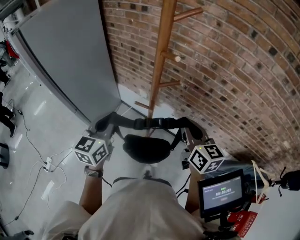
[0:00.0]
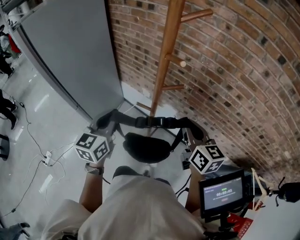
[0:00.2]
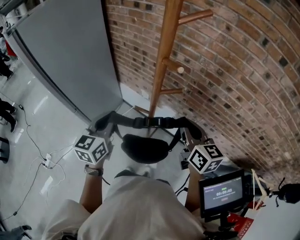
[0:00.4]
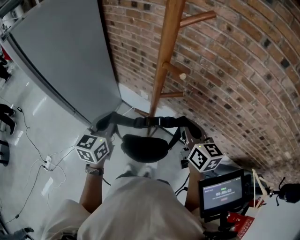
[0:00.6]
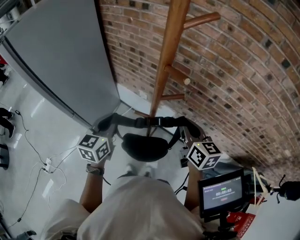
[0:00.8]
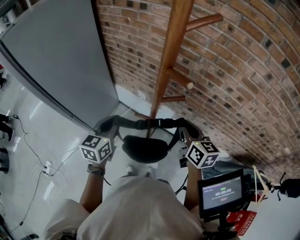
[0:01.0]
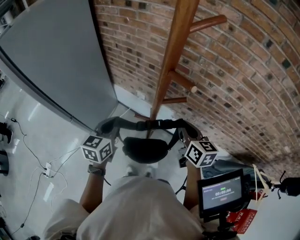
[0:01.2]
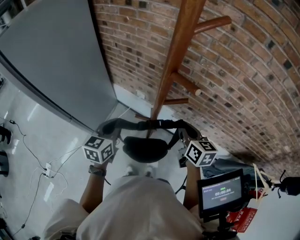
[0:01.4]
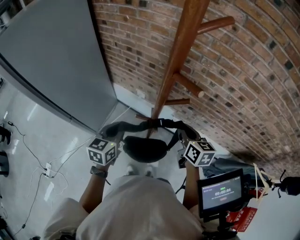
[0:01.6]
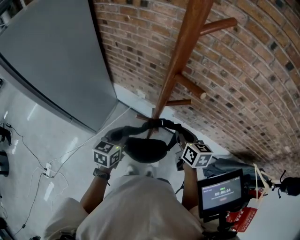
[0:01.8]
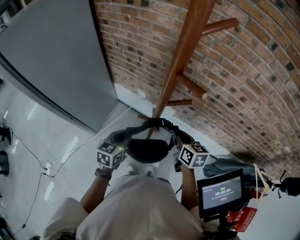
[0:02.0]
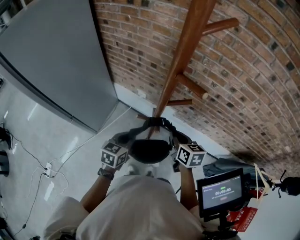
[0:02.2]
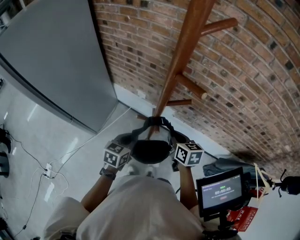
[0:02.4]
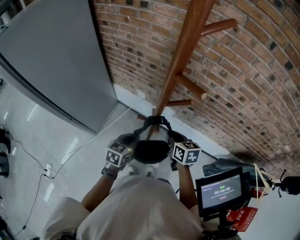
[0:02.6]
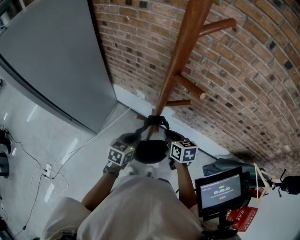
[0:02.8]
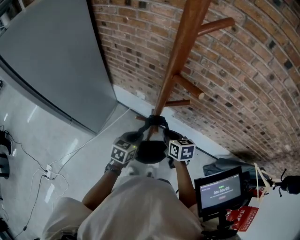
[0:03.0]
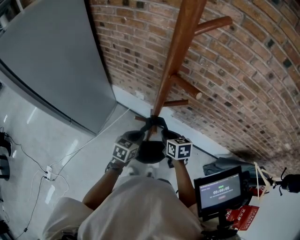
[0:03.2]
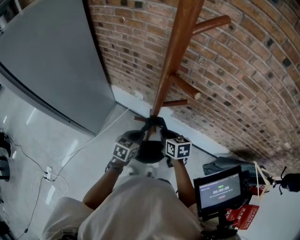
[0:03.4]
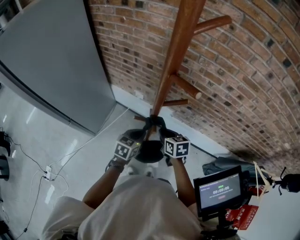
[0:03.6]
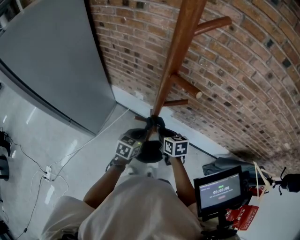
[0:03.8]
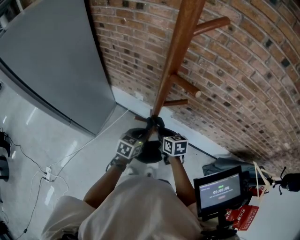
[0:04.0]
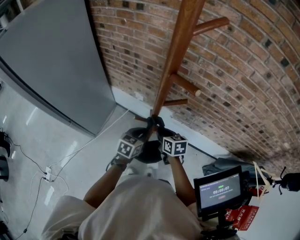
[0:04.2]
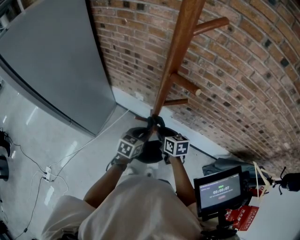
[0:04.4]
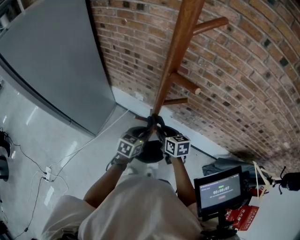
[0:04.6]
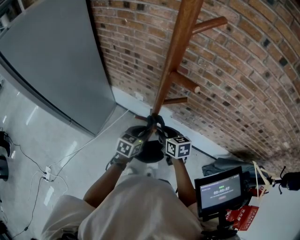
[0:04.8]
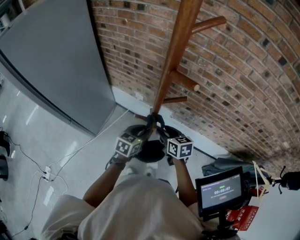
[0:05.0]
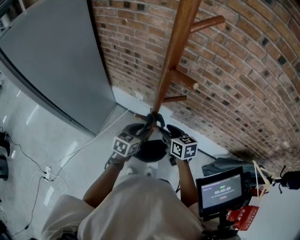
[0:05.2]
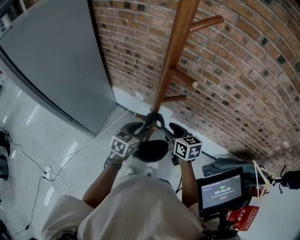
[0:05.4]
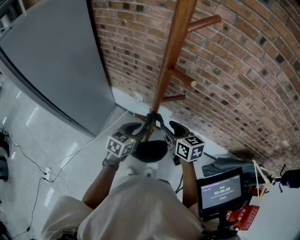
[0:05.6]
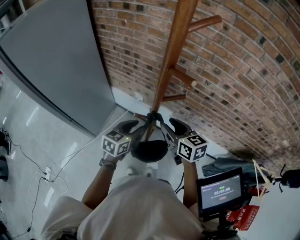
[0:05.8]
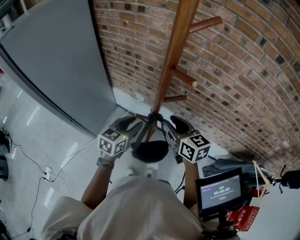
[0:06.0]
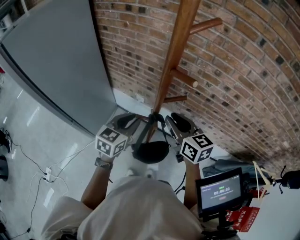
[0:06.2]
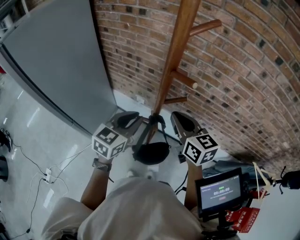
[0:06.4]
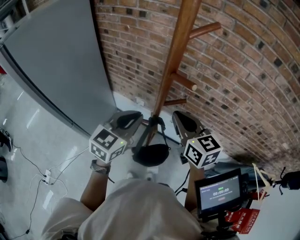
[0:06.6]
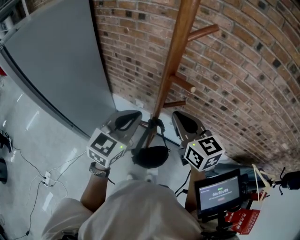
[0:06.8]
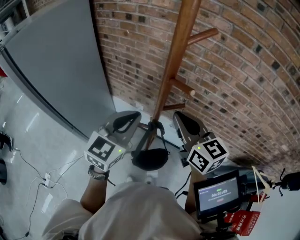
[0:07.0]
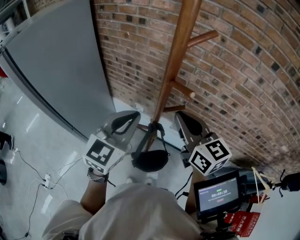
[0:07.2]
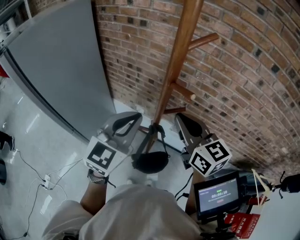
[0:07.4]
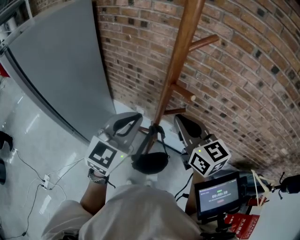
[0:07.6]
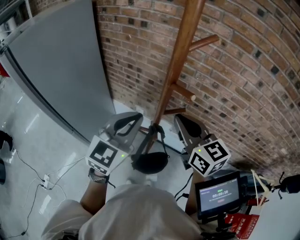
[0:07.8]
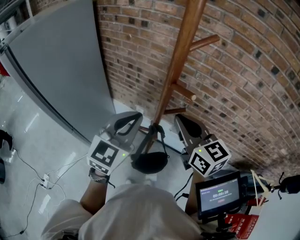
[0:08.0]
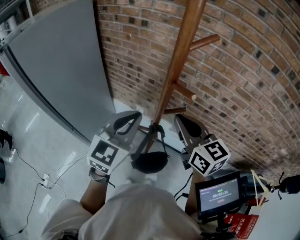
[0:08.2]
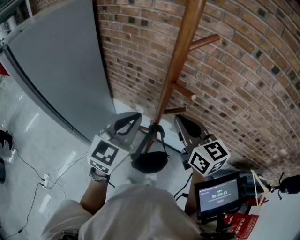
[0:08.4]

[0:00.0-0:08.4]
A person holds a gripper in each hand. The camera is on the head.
0.0 to 1.4 s: The grippers both shift downward and forward by about 10 cm.
1.4 to 2.8 s: The right gripper shifts roughly 10 cm downward and to the left; the left gripper shifts some 15 cm downward and to the right.
2.8 to 4.2 s: The left gripper ends up about 5 cm from where it was.
4.2 to 5.6 s: The right gripper travels upward by about 10 cm, and opens up. Meanwhile the left gripper moves upward, roughly 5 cm, and opens its fingers.
5.6 to 7.0 s: The two grippers go some 20 cm upward. The left gripper swivels some 30 degrees, and closes its fingers, while the right gripper rotates some 20 degrees, and closes its fingers.
7.0 to 8.4 s: The grippers stay close to where they were, moving slightly.

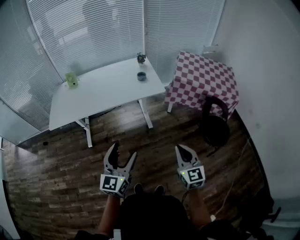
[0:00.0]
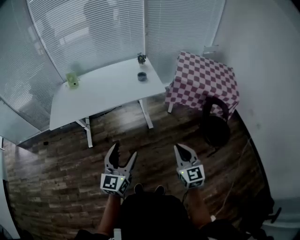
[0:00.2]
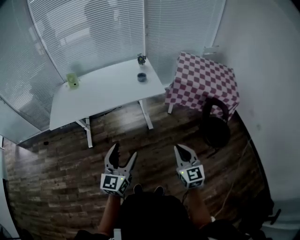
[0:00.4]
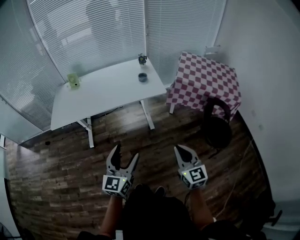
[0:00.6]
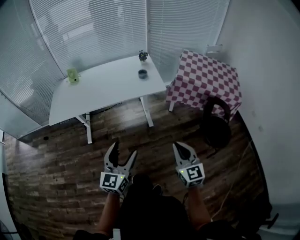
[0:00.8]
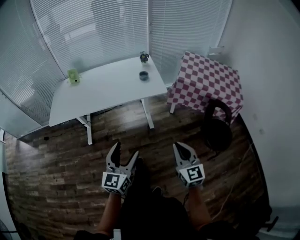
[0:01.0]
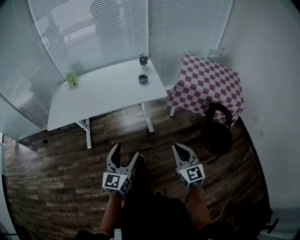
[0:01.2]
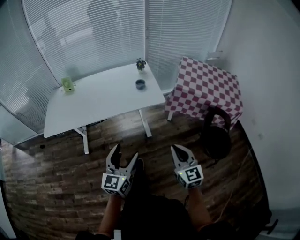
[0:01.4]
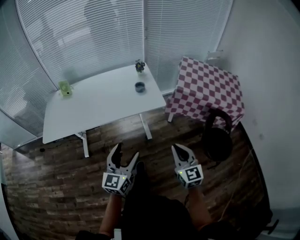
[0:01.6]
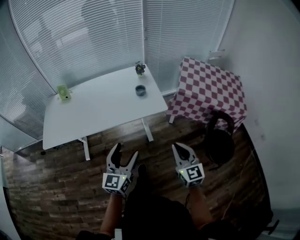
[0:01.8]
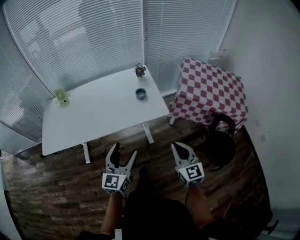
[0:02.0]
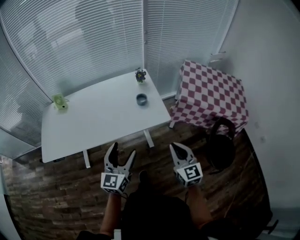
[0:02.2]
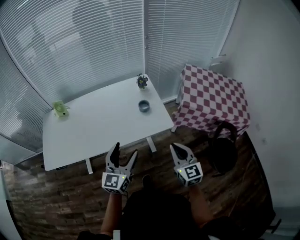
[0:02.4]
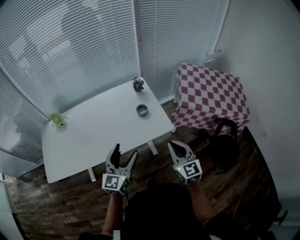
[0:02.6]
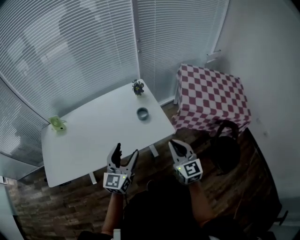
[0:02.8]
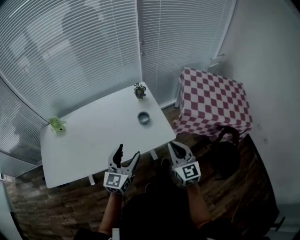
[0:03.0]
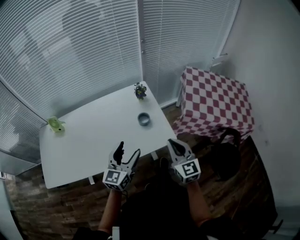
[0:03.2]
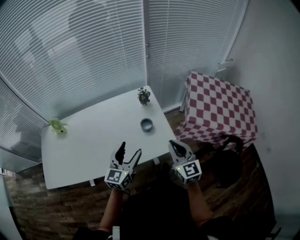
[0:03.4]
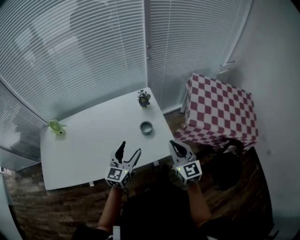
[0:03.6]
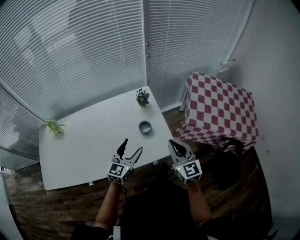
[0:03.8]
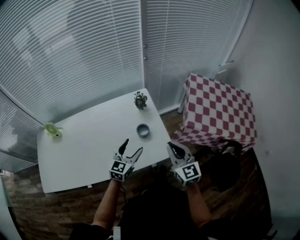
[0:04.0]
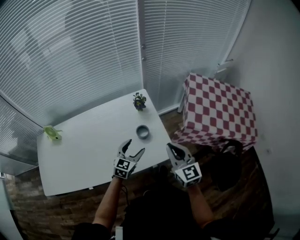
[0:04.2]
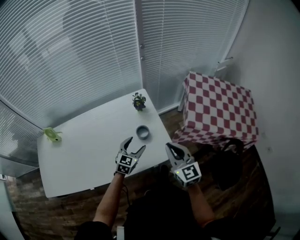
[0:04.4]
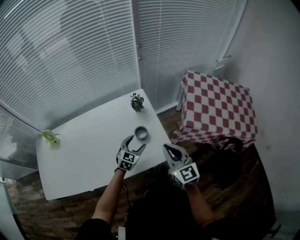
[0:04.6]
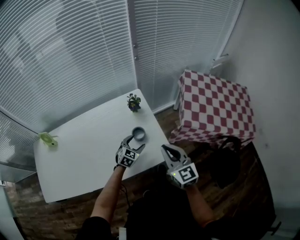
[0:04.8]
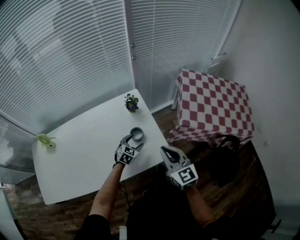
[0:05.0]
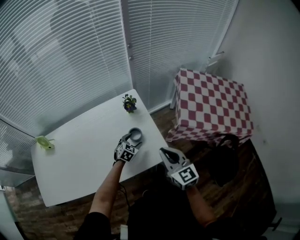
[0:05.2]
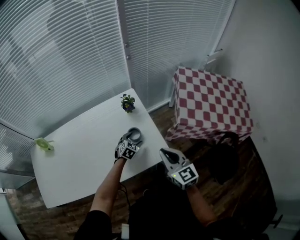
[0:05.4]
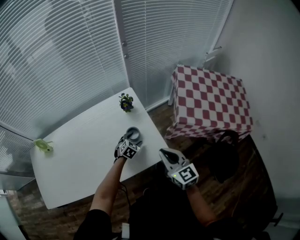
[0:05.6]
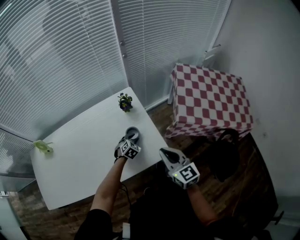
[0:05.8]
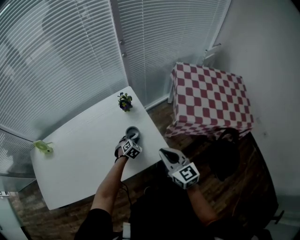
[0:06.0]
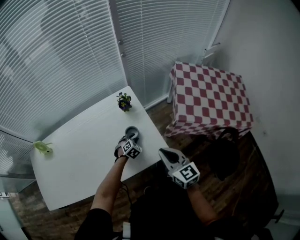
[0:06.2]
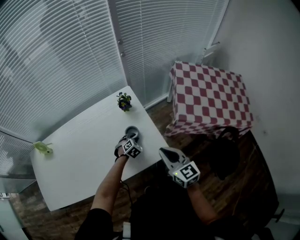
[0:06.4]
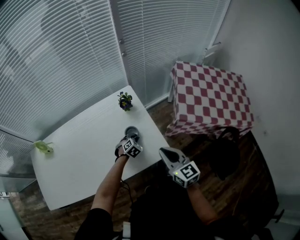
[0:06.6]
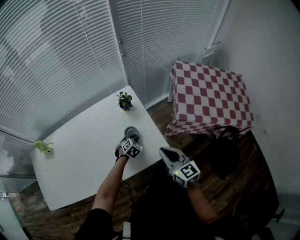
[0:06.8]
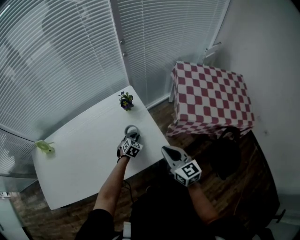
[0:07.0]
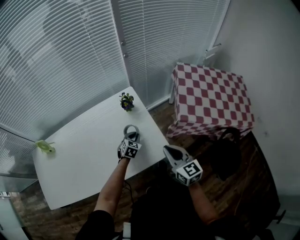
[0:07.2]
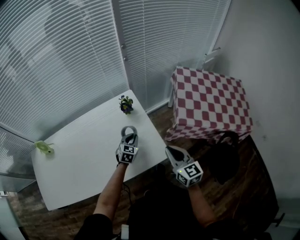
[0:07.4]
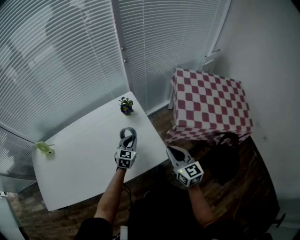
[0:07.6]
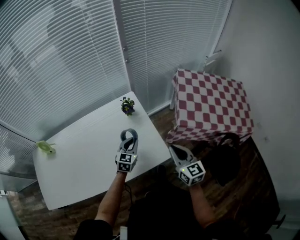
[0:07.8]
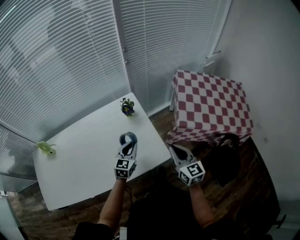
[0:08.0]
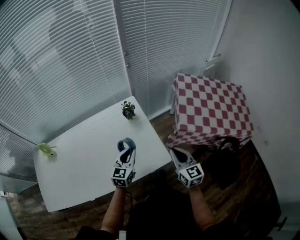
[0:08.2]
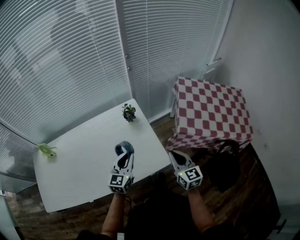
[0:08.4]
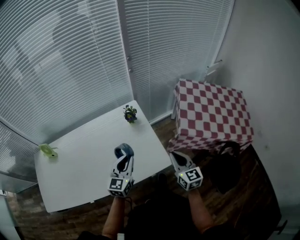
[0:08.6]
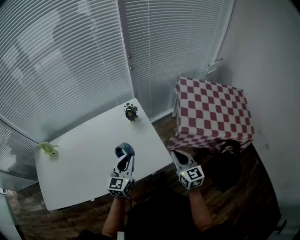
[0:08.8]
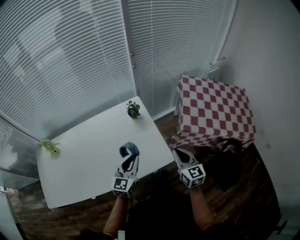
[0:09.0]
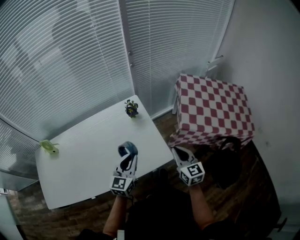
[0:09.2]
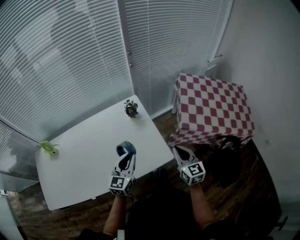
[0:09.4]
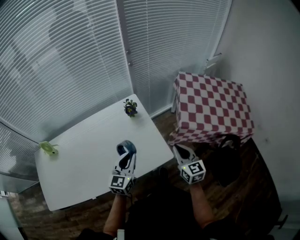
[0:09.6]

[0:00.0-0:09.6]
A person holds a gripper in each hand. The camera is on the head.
0.0 to 1.6 s: The grippers both shift forward by roughly 15 cm.
1.6 to 3.2 s: The two grippers go about 35 cm forward.
3.2 to 4.8 s: The left gripper heads downward and forward, covering about 30 cm, and angles its fingers downward, by about 30 degrees, while the right gripper travels forward by some 10 cm.
4.8 to 6.4 s: The left gripper is displaced downward by about 10 cm, rotates approximately 30 degrees, and closes.
6.4 to 8.0 s: The left gripper heads upward, covering some 20 cm, and tips its fingers upward by roughly 40 degrees. The right gripper travels to the right by roughly 5 cm.
8.0 to 9.6 s: The left gripper moves upward and backward, roughly 10 cm.

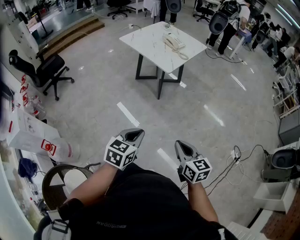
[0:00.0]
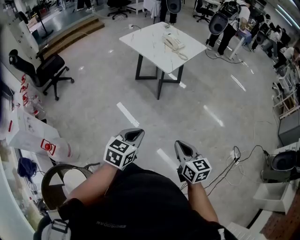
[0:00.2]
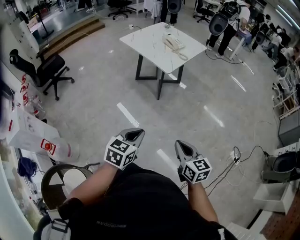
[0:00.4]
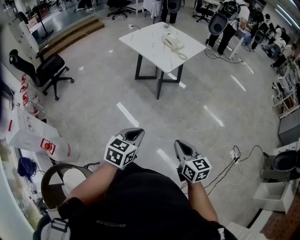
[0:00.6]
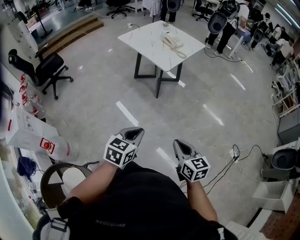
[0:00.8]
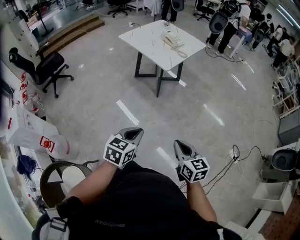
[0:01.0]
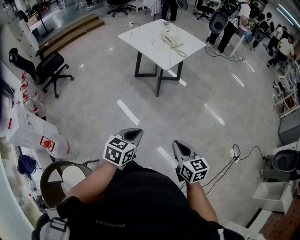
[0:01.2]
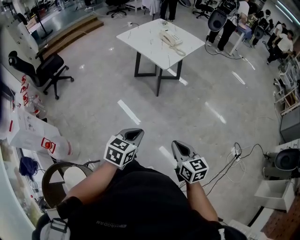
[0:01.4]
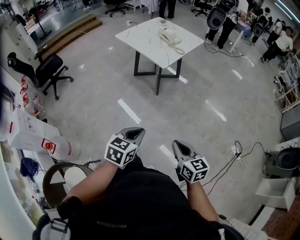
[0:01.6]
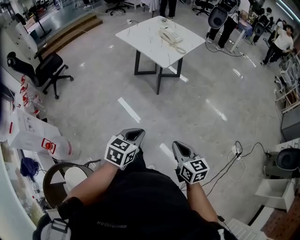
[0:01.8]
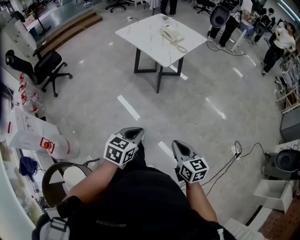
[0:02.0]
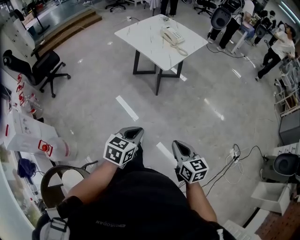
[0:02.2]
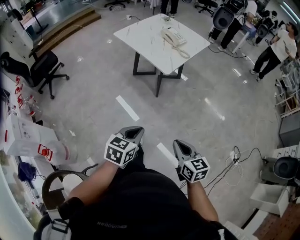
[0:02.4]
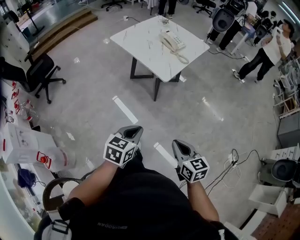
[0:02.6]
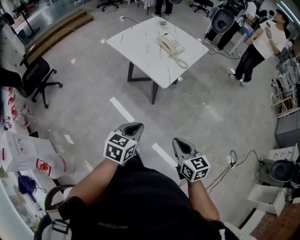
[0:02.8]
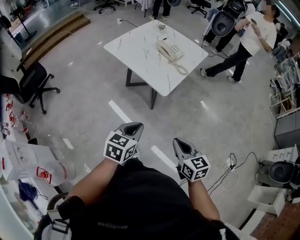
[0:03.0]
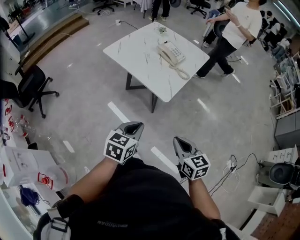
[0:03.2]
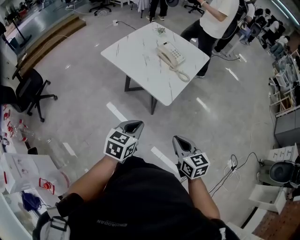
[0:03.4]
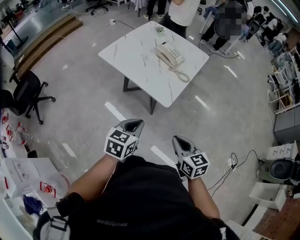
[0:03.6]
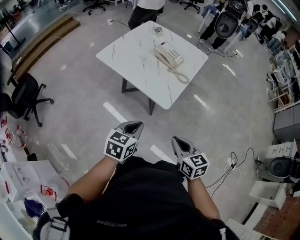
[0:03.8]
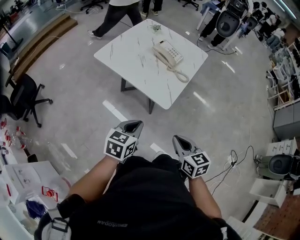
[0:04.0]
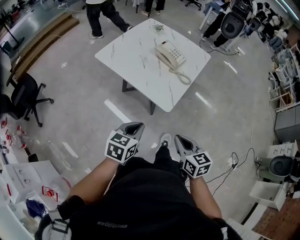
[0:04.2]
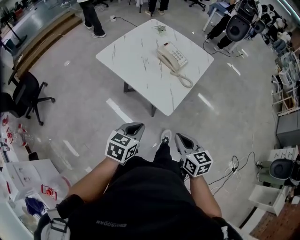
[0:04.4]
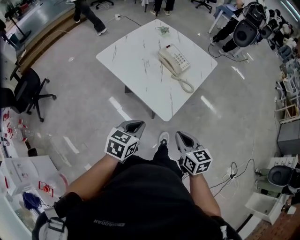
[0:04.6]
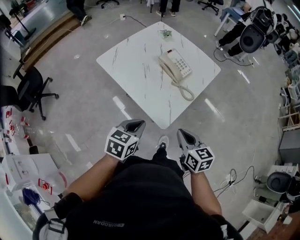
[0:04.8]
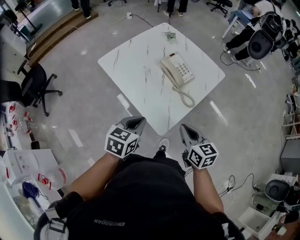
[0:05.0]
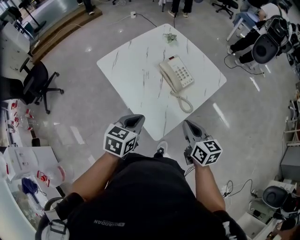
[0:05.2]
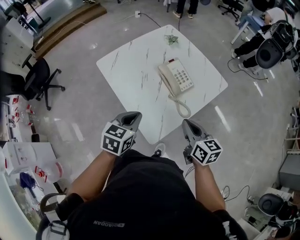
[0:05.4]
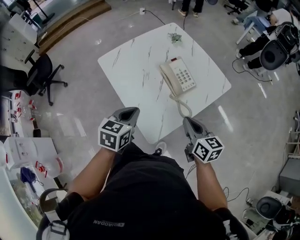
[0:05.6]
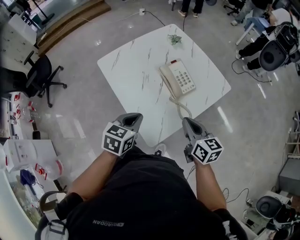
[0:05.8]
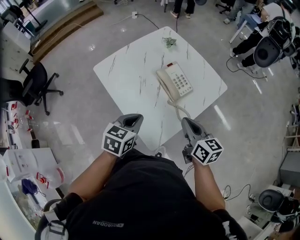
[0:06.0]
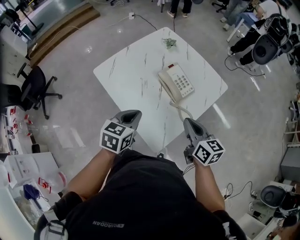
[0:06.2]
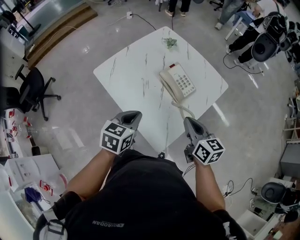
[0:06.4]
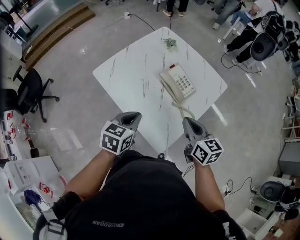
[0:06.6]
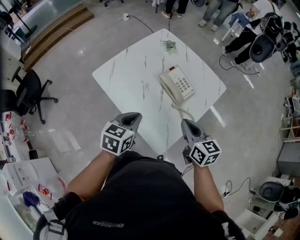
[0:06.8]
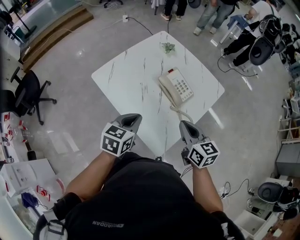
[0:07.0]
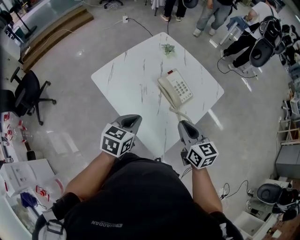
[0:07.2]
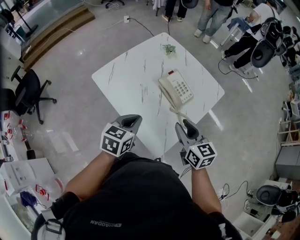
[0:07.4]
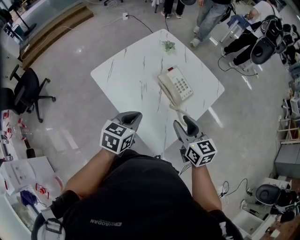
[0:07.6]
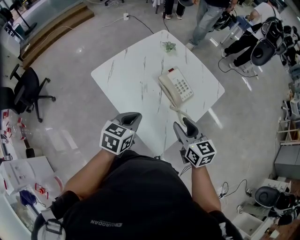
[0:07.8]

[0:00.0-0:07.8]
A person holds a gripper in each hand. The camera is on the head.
0.0 to 1.6 s: The grippers stay close to where they were, moving slightly.
1.6 to 3.2 s: Both grippers move forward, roughly 35 cm.
3.2 to 4.6 s: Both grippers move forward, about 15 cm.
4.6 to 6.2 s: The two grippers go about 25 cm forward.
6.2 to 7.8 s: The right gripper opens.
